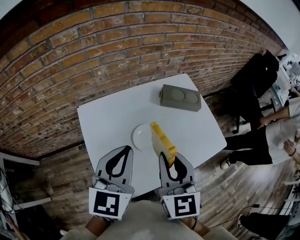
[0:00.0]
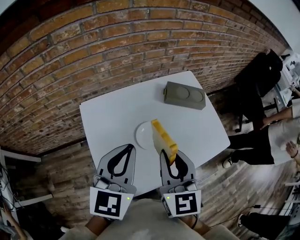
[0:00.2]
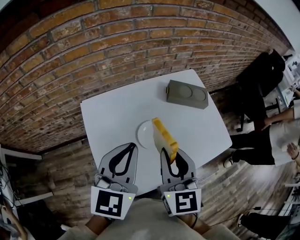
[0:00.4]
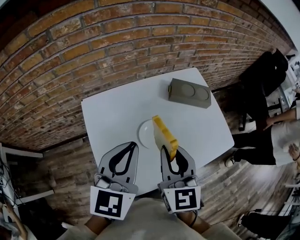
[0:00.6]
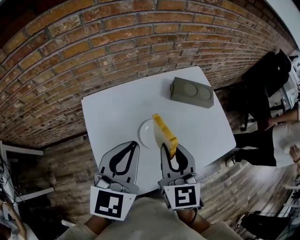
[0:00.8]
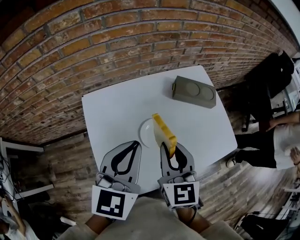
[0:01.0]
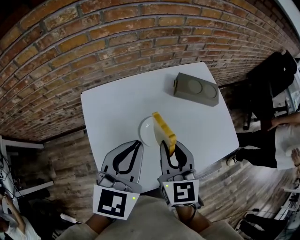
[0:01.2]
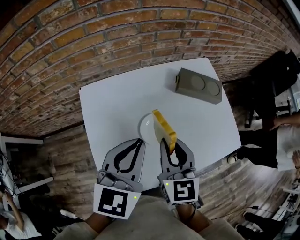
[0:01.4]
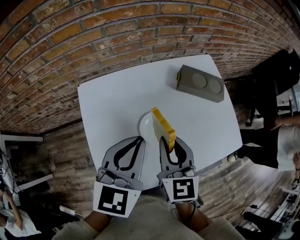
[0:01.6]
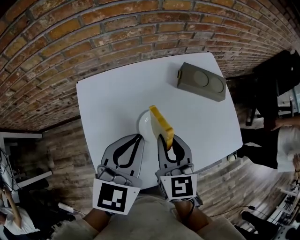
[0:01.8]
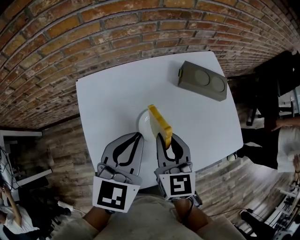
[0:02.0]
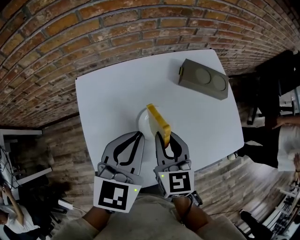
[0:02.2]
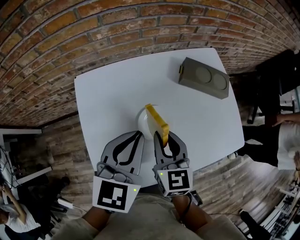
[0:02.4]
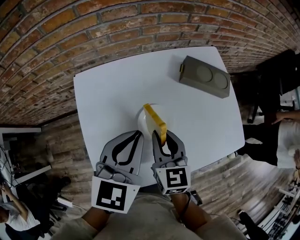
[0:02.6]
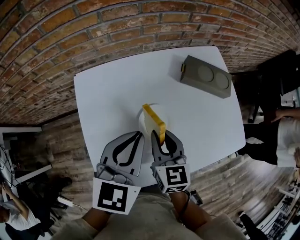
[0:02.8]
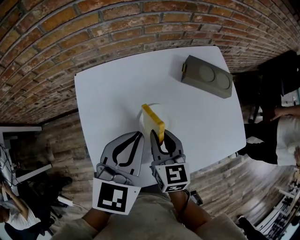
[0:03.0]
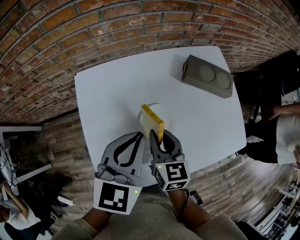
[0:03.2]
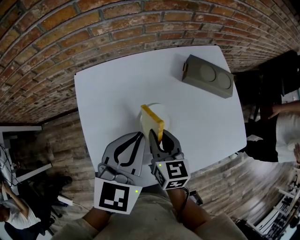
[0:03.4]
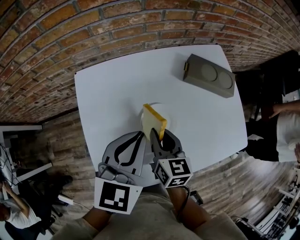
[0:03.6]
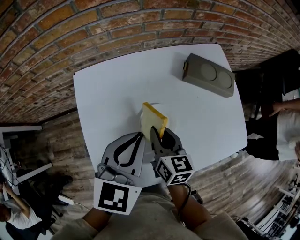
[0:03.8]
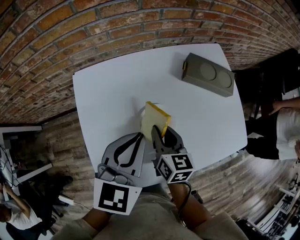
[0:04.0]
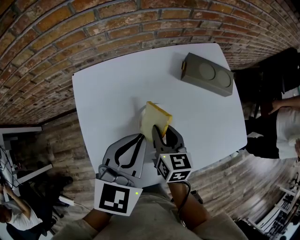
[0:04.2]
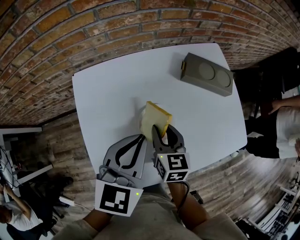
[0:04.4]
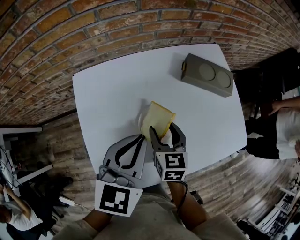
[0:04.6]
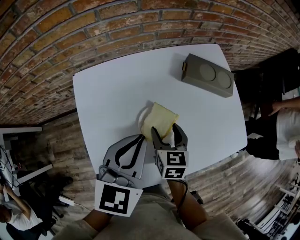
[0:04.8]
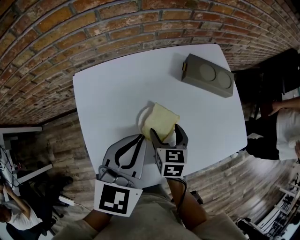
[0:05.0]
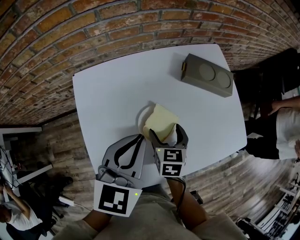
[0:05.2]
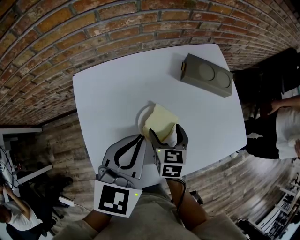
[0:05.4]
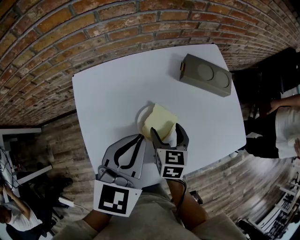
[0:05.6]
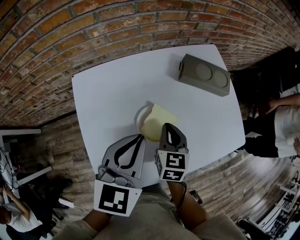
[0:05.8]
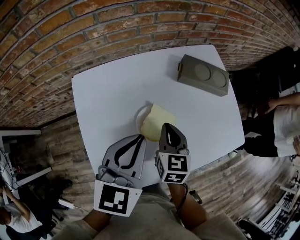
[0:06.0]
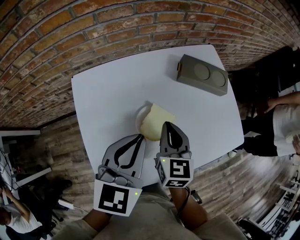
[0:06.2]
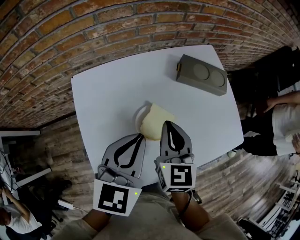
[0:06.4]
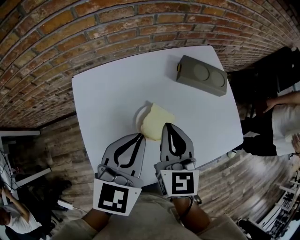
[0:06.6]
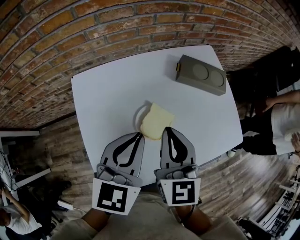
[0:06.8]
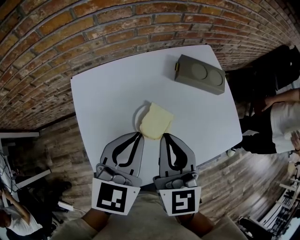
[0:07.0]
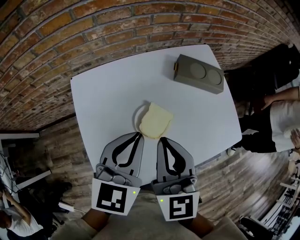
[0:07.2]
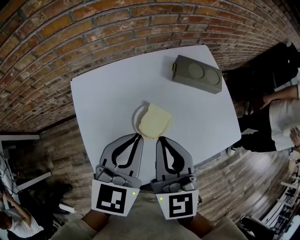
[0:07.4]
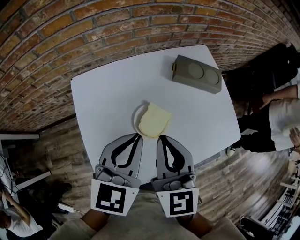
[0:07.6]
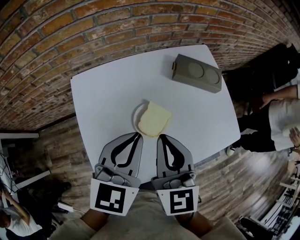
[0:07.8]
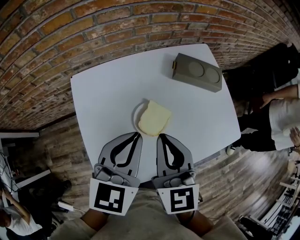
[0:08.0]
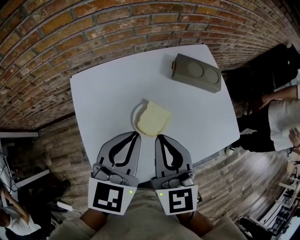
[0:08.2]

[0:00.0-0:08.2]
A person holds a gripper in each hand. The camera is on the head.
0:00.0 to 0:01.6: The right gripper shifts about 15 cm downward and forward, while the left gripper is displaced downward and forward by approximately 10 cm.
0:01.6 to 0:03.2: The right gripper shifts roughly 10 cm downward.
0:03.2 to 0:05.0: The right gripper shifts some 5 cm downward, and opens its fingers.
0:05.0 to 0:06.6: The right gripper heads upward, covering some 15 cm, turns by approximately 30 degrees, and closes its fingers.
0:06.6 to 0:08.2: The right gripper travels backward by about 5 cm.

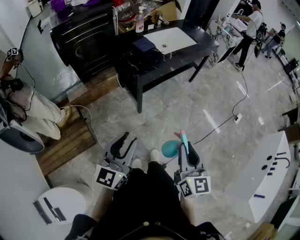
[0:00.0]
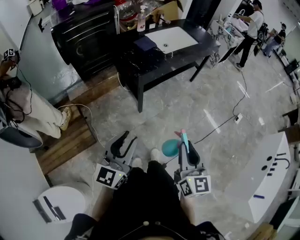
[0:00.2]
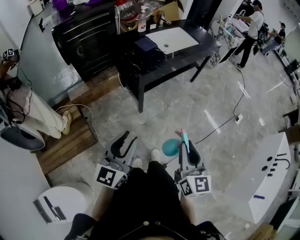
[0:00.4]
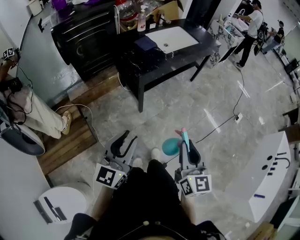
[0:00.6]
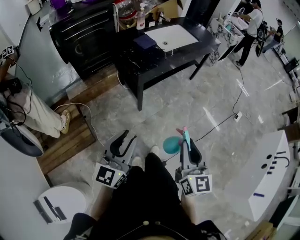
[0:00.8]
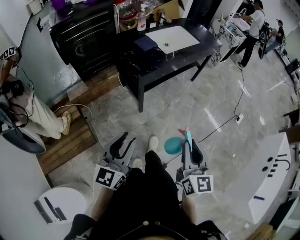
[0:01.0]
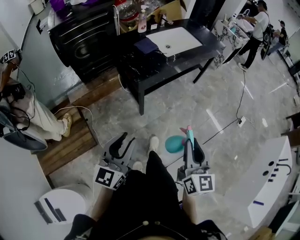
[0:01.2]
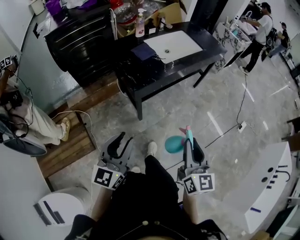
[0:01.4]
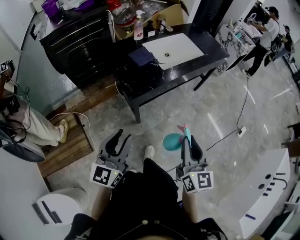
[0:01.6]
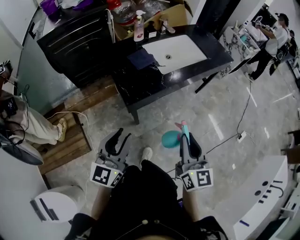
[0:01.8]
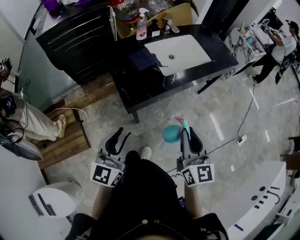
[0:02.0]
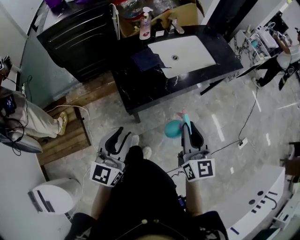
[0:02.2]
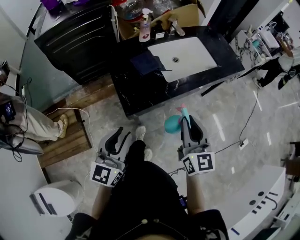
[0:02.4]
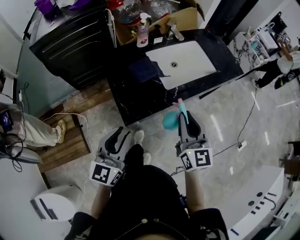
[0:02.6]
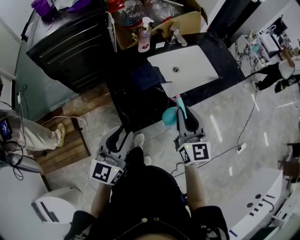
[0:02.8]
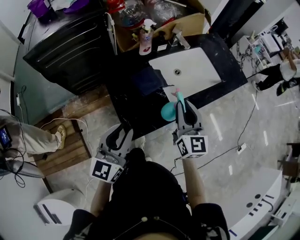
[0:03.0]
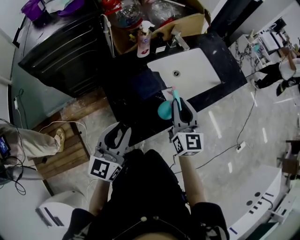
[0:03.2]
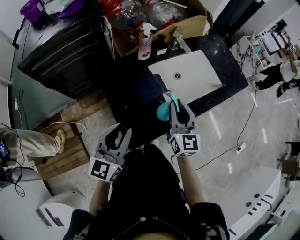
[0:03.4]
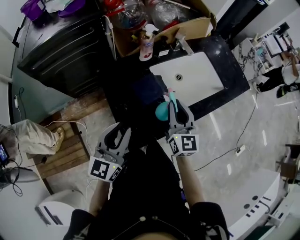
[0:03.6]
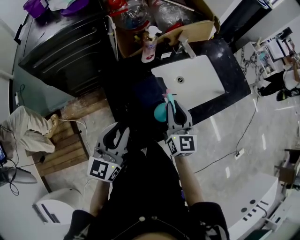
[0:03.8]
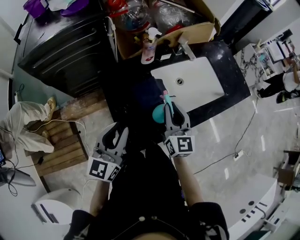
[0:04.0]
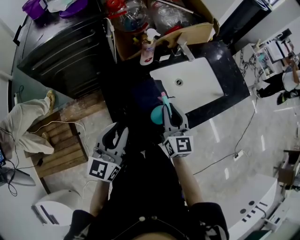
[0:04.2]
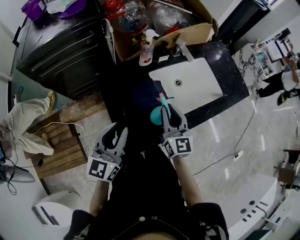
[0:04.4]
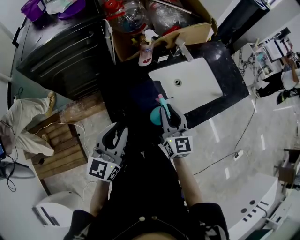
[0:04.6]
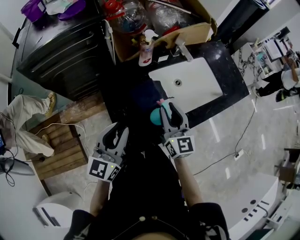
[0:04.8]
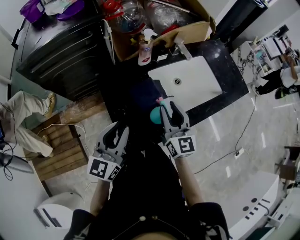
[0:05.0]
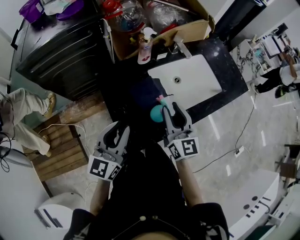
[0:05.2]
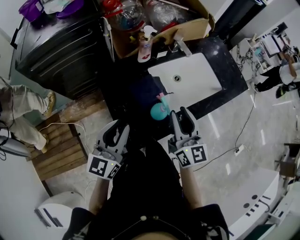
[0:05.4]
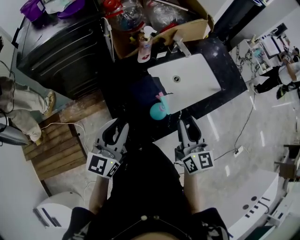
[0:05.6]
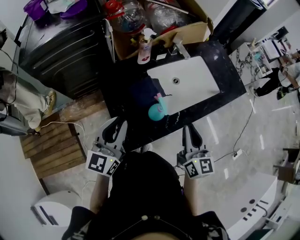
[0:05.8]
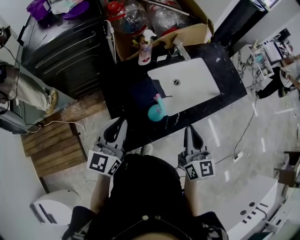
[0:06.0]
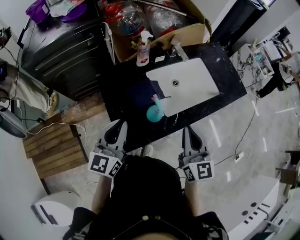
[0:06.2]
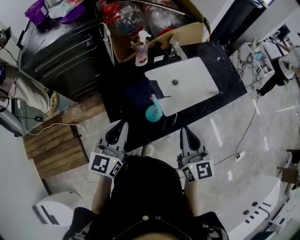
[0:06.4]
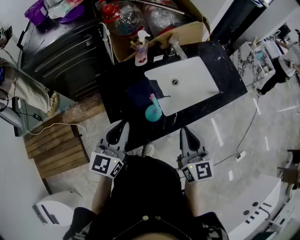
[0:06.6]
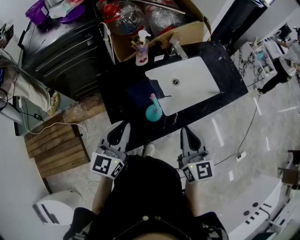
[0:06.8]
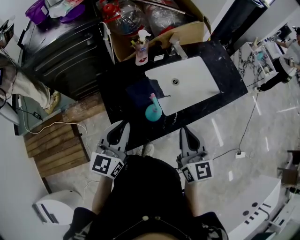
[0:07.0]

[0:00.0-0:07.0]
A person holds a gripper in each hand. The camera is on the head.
0:00.0 to 0:01.4: The grippers both shift forward by about 15 cm.
0:01.4 to 0:02.8: Both grippers move forward, approximately 35 cm.
0:02.8 to 0:04.2: The right gripper goes some 15 cm forward, to the left and downward. Meanwhile the left gripper moves forward, roughly 15 cm.
0:04.2 to 0:05.6: The right gripper travels backward and to the right by some 10 cm.
0:05.6 to 0:07.0: The right gripper closes its fingers.

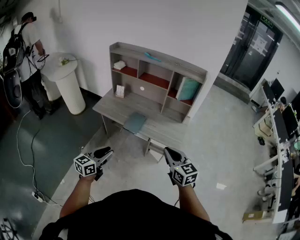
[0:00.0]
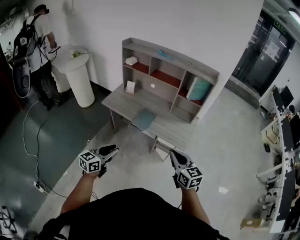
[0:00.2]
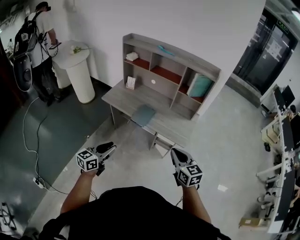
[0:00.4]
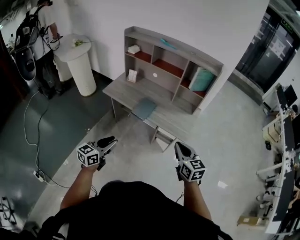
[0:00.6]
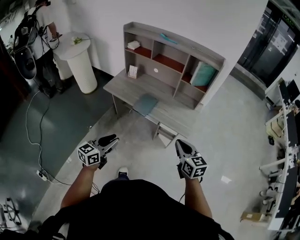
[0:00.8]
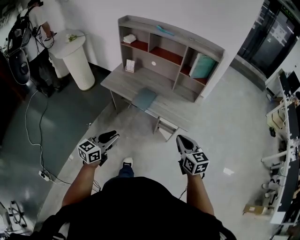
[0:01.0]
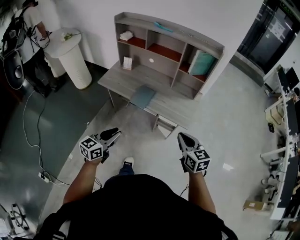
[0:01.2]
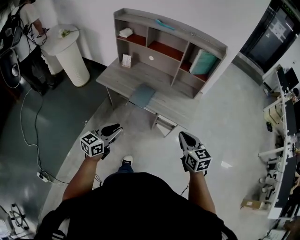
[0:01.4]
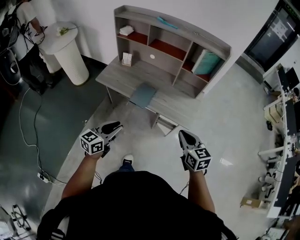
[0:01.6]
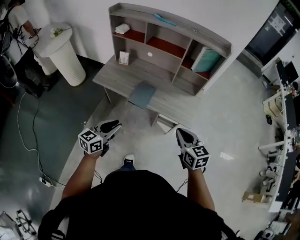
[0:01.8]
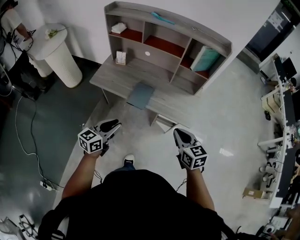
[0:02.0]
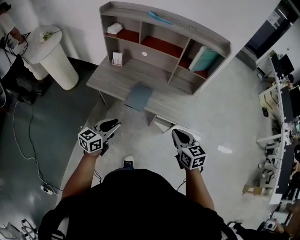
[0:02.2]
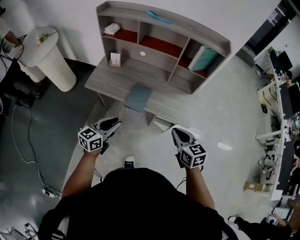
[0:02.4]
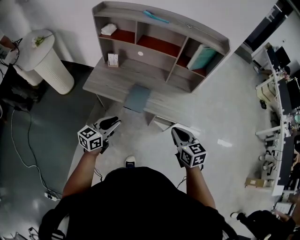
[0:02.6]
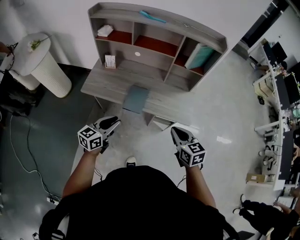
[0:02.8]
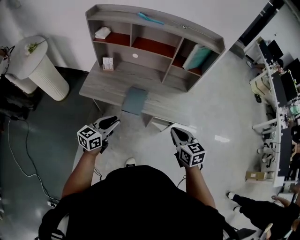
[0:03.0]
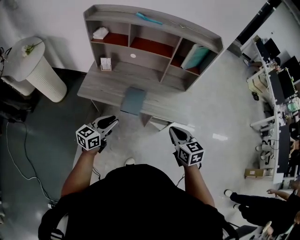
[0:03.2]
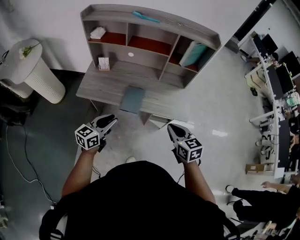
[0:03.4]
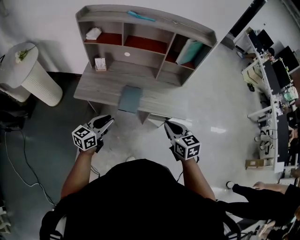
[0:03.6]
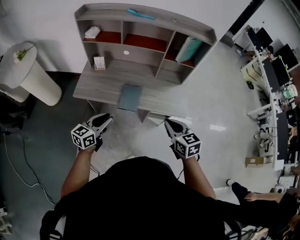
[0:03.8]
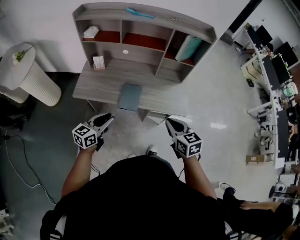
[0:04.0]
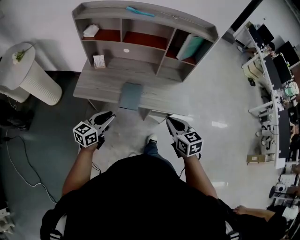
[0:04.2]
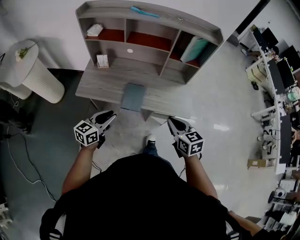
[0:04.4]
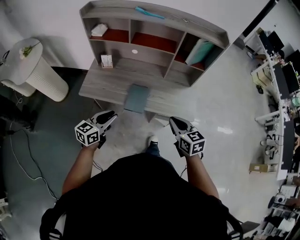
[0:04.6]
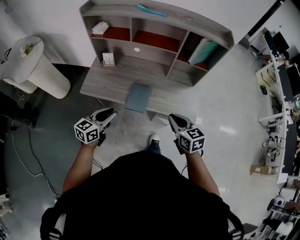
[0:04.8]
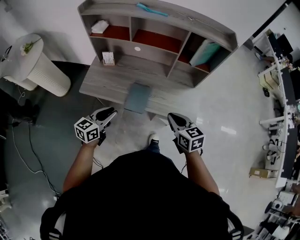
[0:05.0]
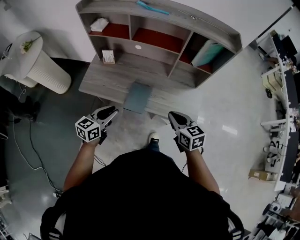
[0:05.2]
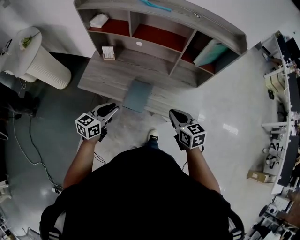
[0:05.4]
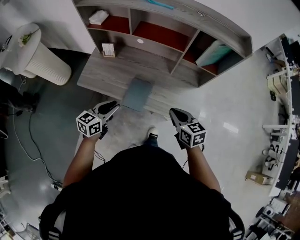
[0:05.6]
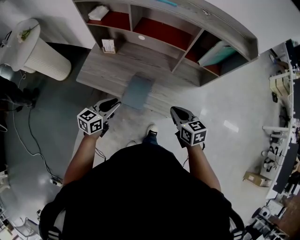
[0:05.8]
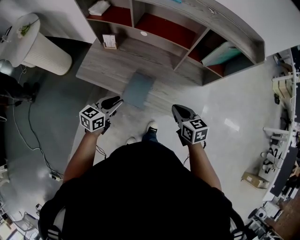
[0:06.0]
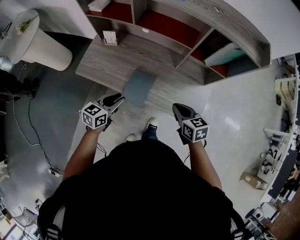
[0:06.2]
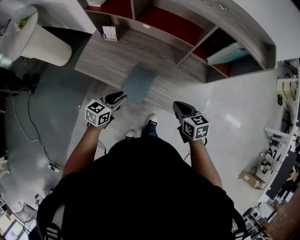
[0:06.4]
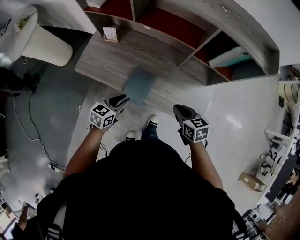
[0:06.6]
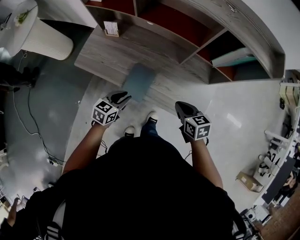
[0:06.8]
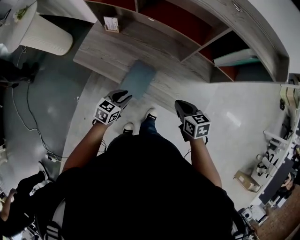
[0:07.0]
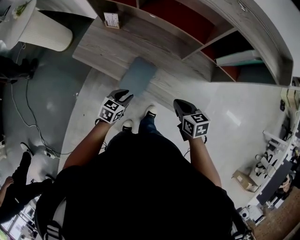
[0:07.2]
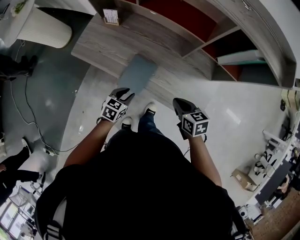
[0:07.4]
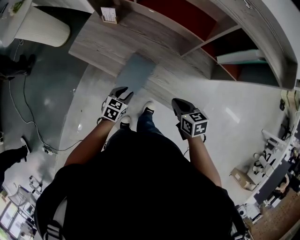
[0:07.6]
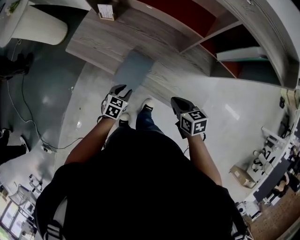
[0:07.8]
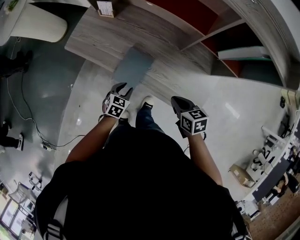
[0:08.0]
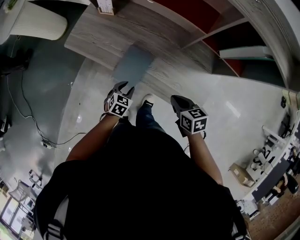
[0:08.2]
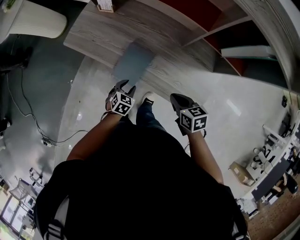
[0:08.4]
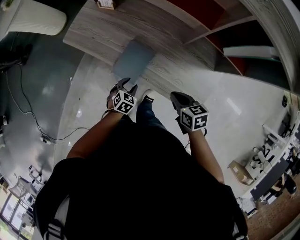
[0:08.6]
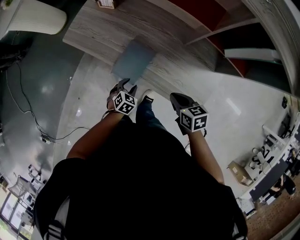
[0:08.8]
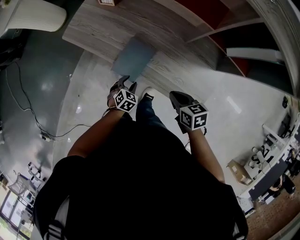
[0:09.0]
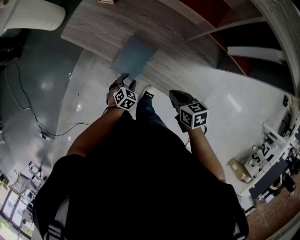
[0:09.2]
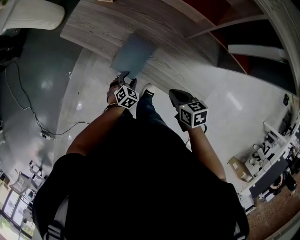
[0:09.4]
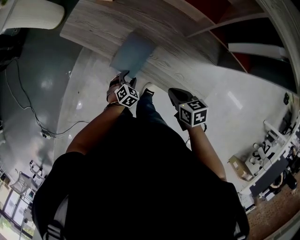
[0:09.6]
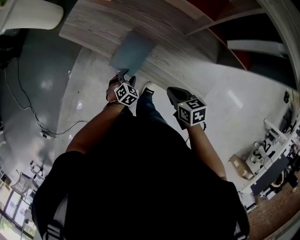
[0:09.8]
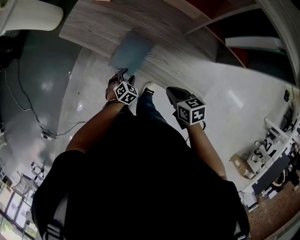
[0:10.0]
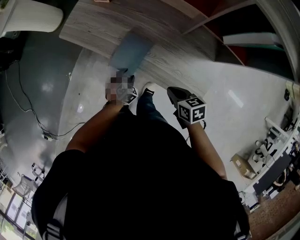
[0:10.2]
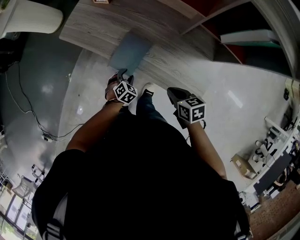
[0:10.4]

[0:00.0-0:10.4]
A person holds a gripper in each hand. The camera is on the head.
0:00.0 to 0:01.4: The left gripper goes approximately 5 cm forward. The right gripper is displaced downward and to the right by approximately 10 cm.
0:01.4 to 0:03.0: The right gripper travels to the left and forward by approximately 15 cm; the left gripper is displaced forward and to the left by some 20 cm.
0:03.0 to 0:04.4: The grippers make only small movements.
0:04.4 to 0:06.0: The left gripper travels forward, downward and to the right by approximately 15 cm. Meanwhile the right gripper travels forward and downward by roughly 20 cm.
0:06.0 to 0:07.4: The right gripper travels downward by some 10 cm. Meanwhile the left gripper moves downward, some 15 cm, and swivels approximately 20 degrees.
0:07.4 to 0:09.0: The right gripper travels downward by some 5 cm, while the left gripper is displaced downward by approximately 10 cm, and rotates roughly 20 degrees.
0:09.0 to 0:10.4: There are only small adjustments of the grippers.
